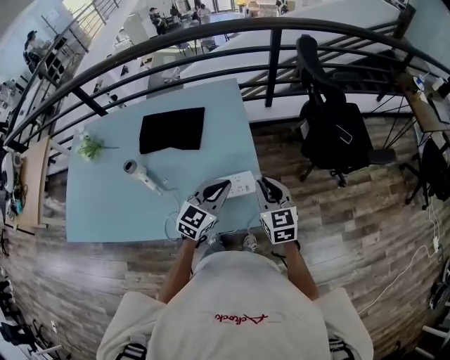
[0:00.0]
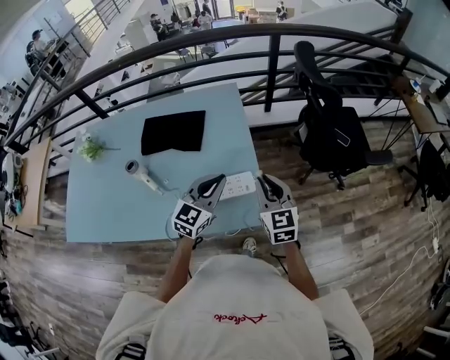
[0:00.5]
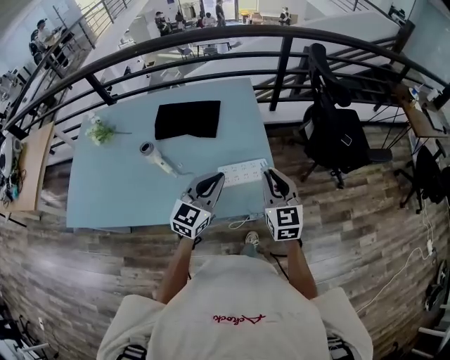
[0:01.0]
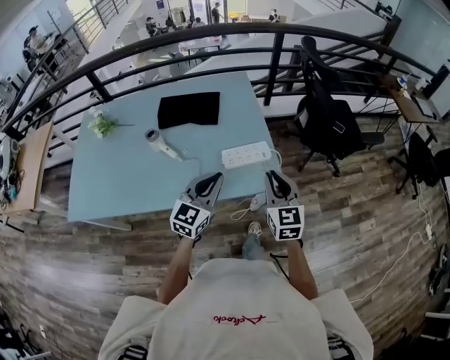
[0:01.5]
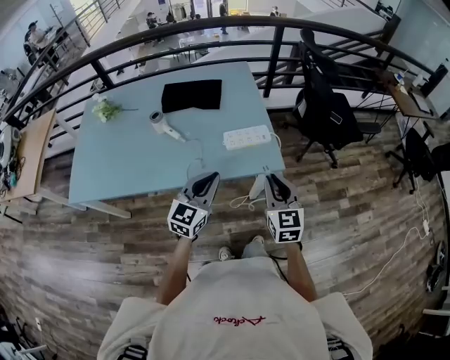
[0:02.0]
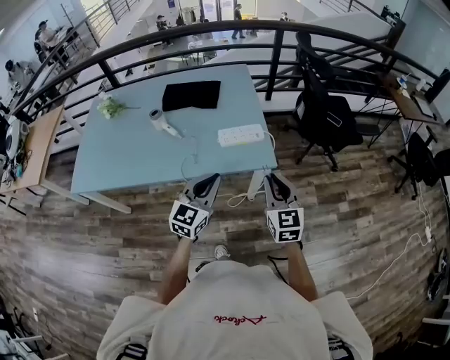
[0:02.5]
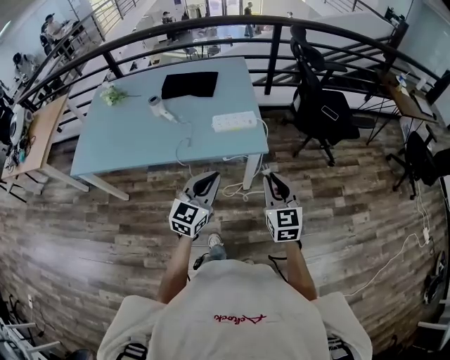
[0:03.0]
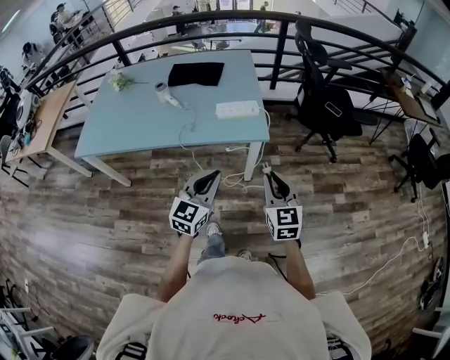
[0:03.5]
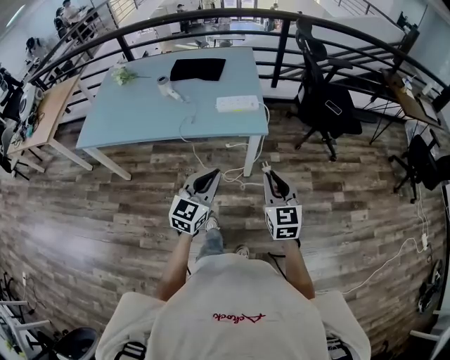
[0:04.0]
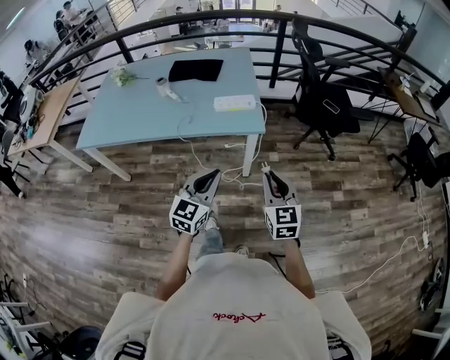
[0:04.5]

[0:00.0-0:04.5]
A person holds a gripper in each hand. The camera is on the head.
0:00.0 to 0:02.0: The left gripper shifts approximately 30 cm backward and to the left. The right gripper heads backward, covering approximately 30 cm.
0:02.0 to 0:04.5: The grippers both shift backward and to the right by some 25 cm.

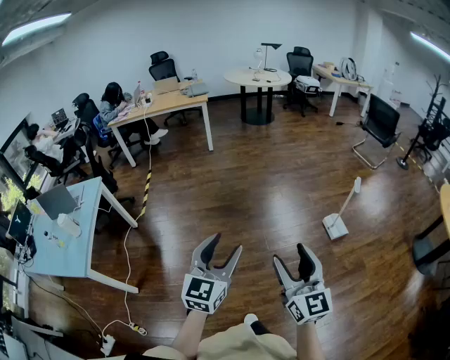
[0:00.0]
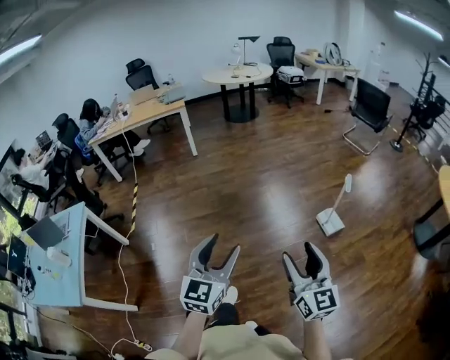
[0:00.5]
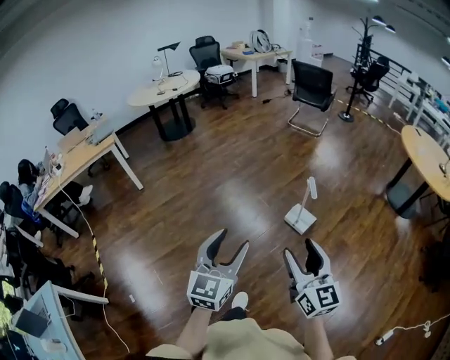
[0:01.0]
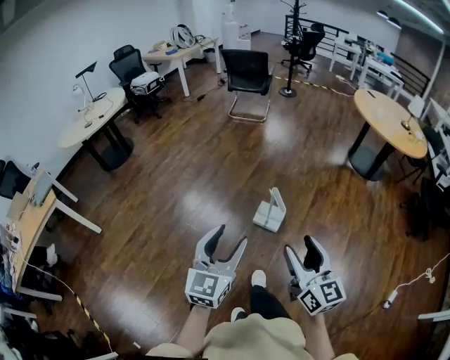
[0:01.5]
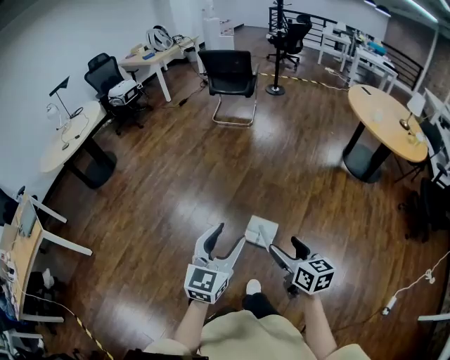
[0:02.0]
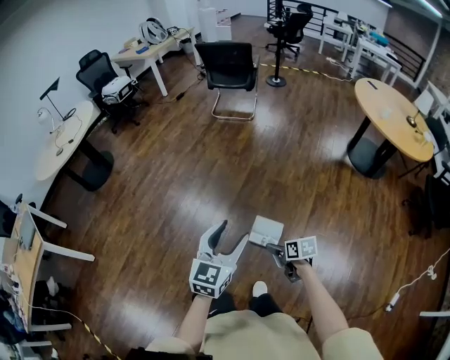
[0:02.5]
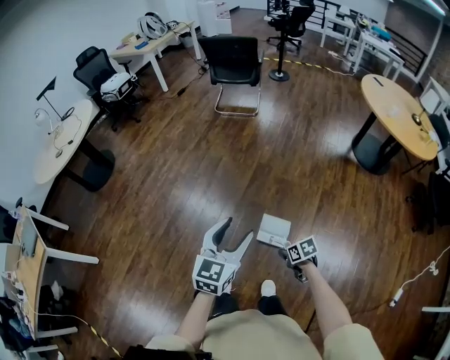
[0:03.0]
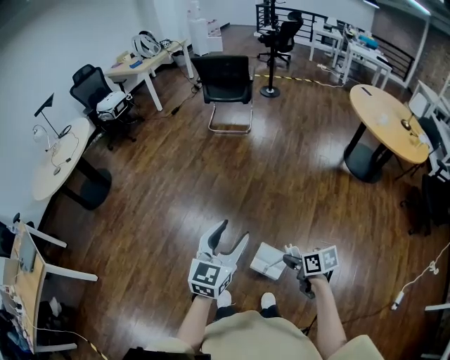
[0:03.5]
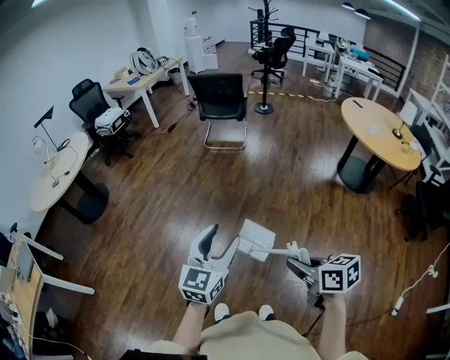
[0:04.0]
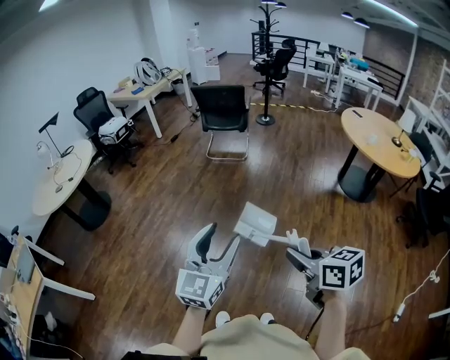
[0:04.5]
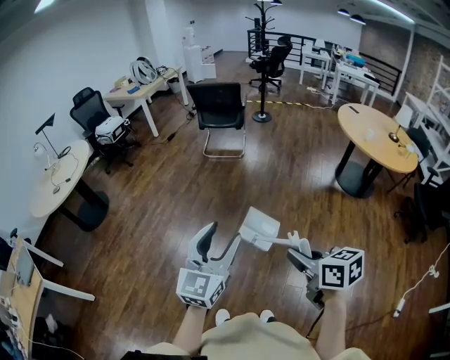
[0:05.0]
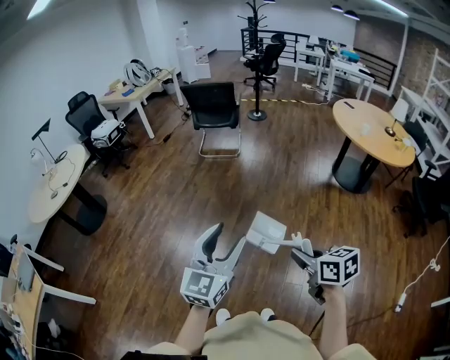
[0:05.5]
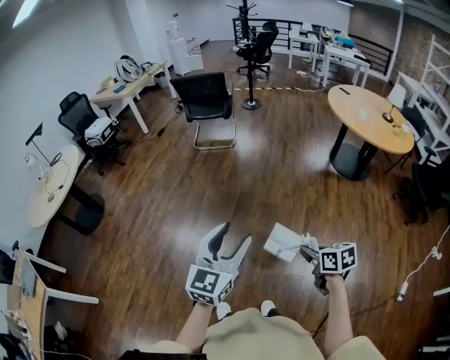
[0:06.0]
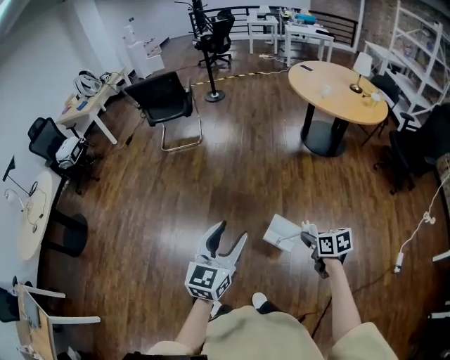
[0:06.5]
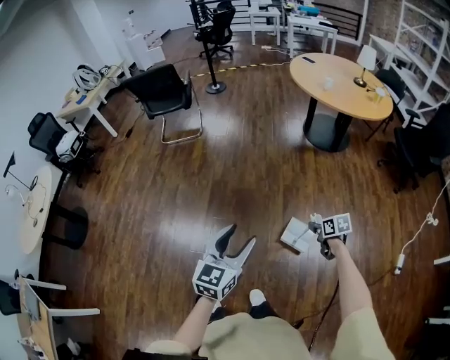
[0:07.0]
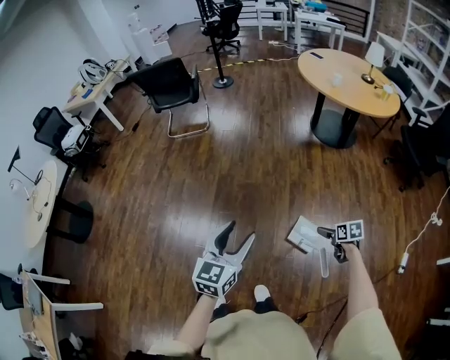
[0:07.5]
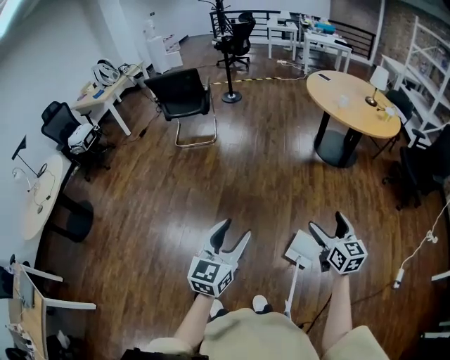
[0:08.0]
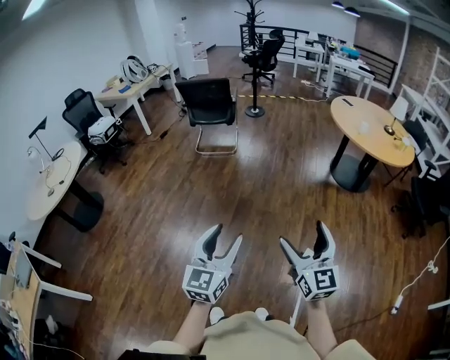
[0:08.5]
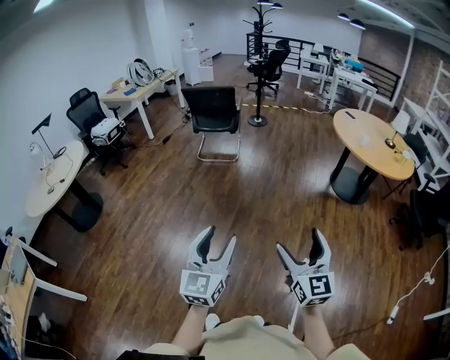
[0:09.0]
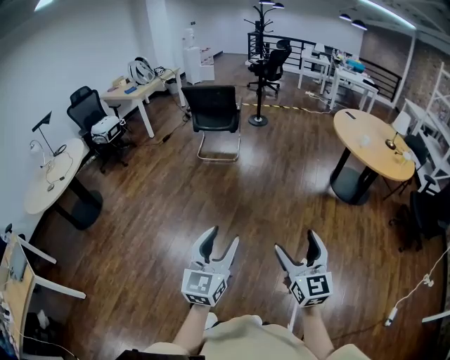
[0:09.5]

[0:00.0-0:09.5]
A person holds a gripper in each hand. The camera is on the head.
0:00.0 to 0:02.0: Both grippers are carried approximately 70 cm. The left gripper rotates about 60 degrees, while the right gripper changes its angle by approximately 60 degrees.
0:02.0 to 0:04.0: The right gripper shifts about 10 cm forward and to the left, reaches roughly 25 cm downward, then returns, and closes its fingers. Meanwhile the left gripper shifts approximately 15 cm forward.
0:04.0 to 0:05.5: The left gripper shifts by approximately 5 cm.
0:05.5 to 0:07.5: The left gripper moves to the right and downward, approximately 25 cm, and rotates approximately 20 degrees, while the right gripper goes about 50 cm to the right and downward, turns by about 30 degrees, and opens.
0:07.5 to 0:09.5: The right gripper travels upward and to the left by approximately 50 cm, and tips its fingers upward by some 60 degrees. Meanwhile the left gripper heads to the left and upward, covering some 20 cm, and changes its angle by some 30 degrees.

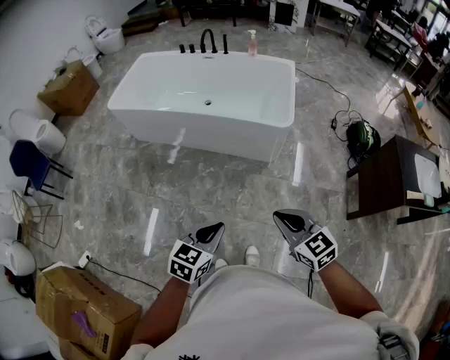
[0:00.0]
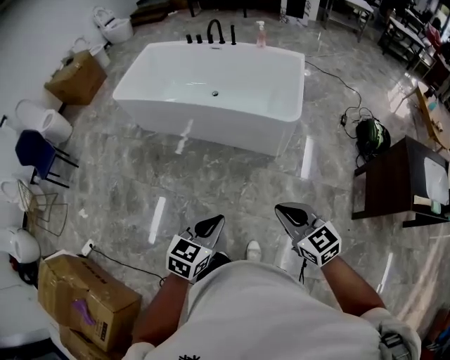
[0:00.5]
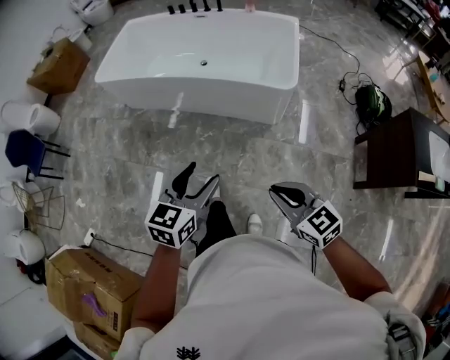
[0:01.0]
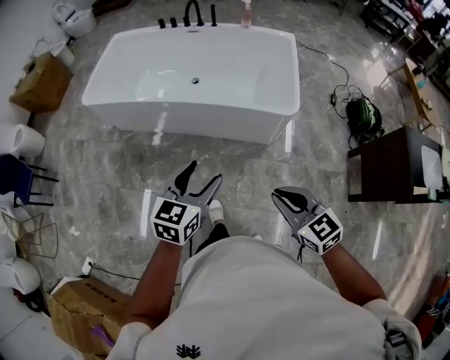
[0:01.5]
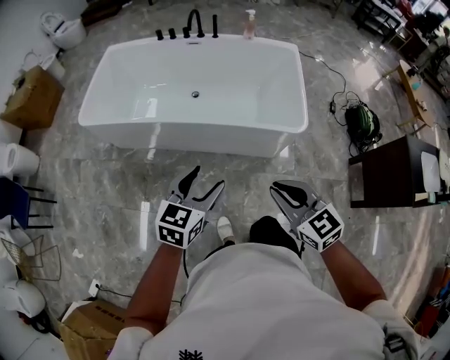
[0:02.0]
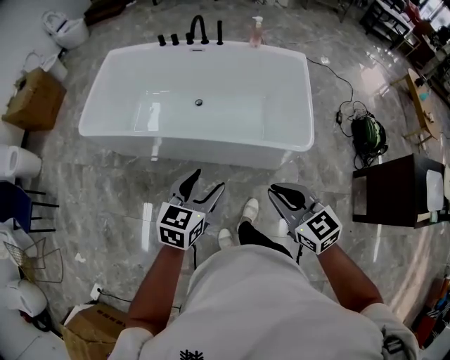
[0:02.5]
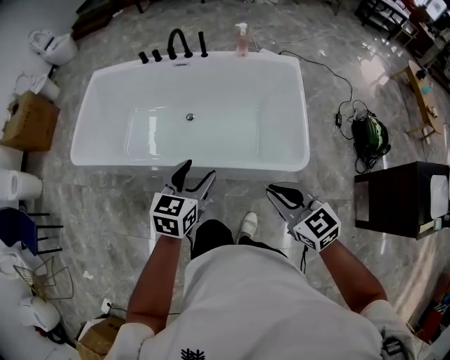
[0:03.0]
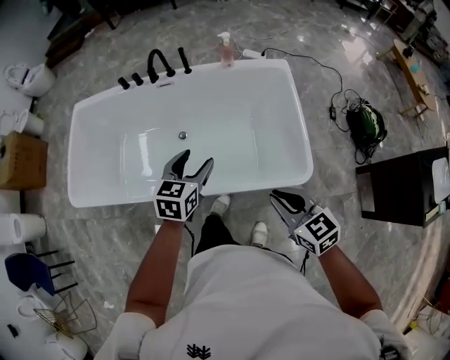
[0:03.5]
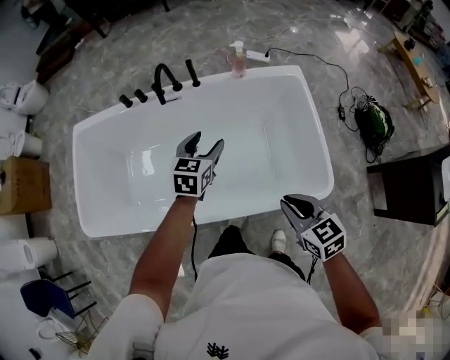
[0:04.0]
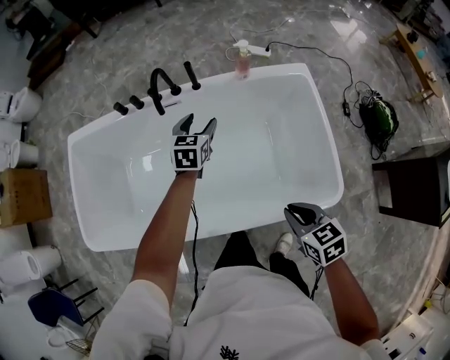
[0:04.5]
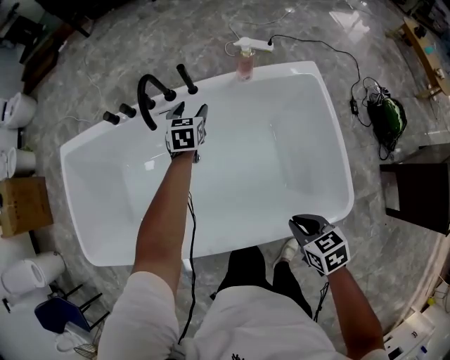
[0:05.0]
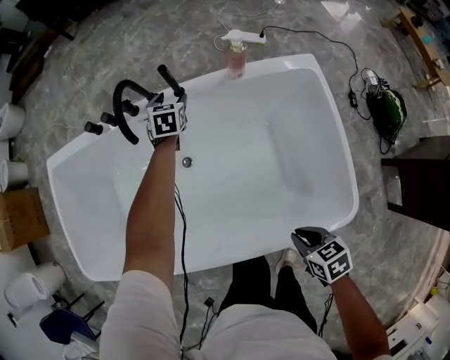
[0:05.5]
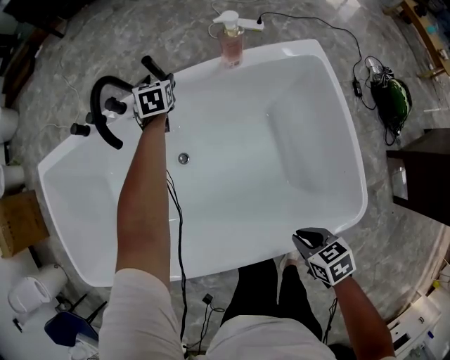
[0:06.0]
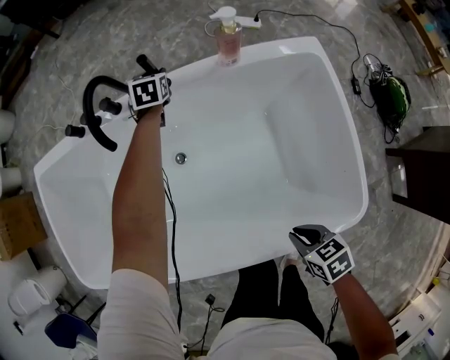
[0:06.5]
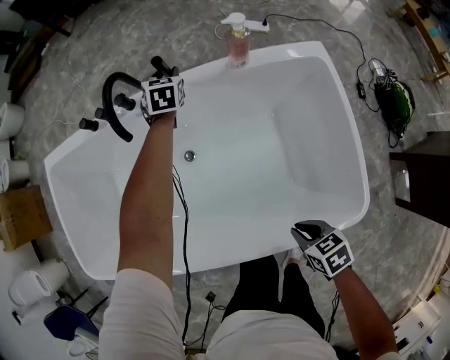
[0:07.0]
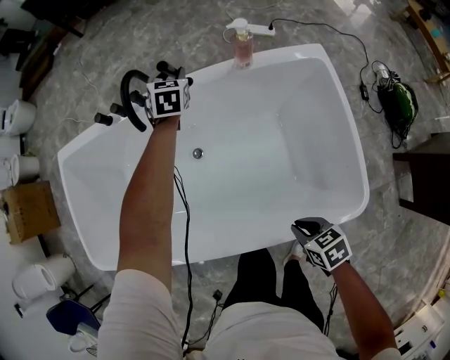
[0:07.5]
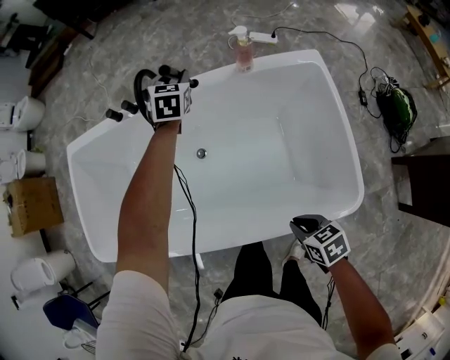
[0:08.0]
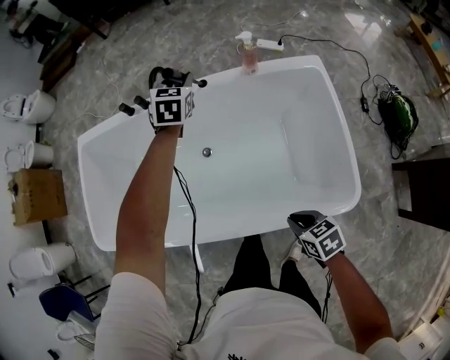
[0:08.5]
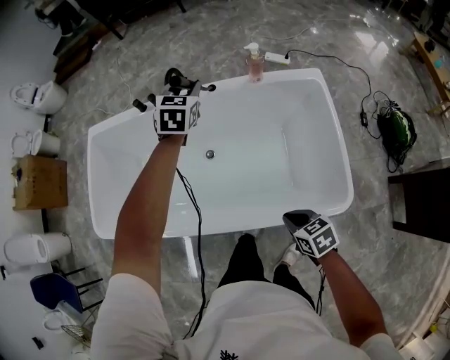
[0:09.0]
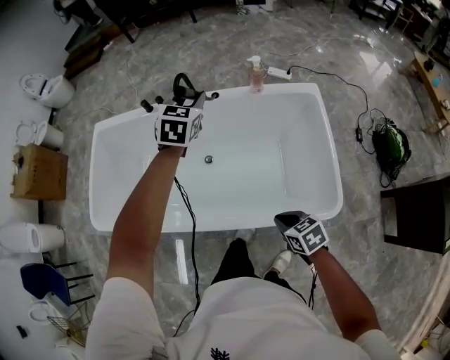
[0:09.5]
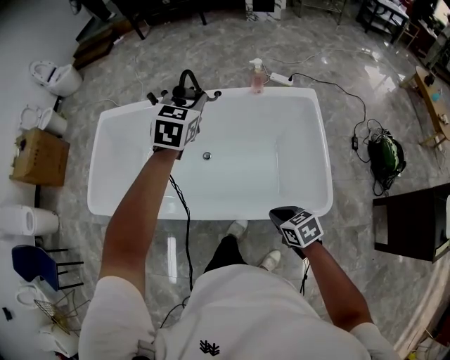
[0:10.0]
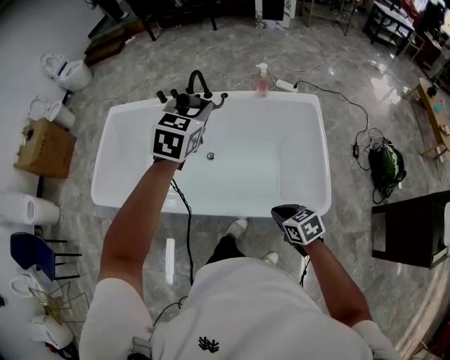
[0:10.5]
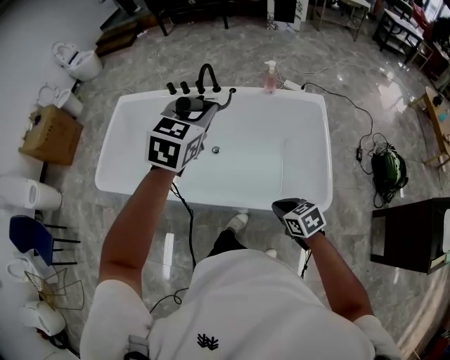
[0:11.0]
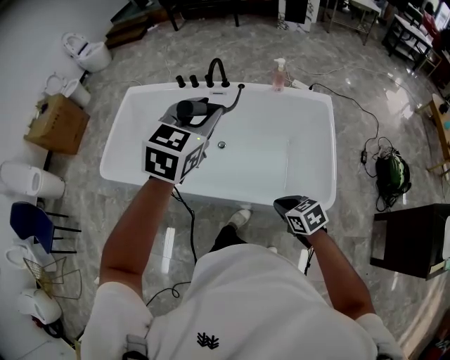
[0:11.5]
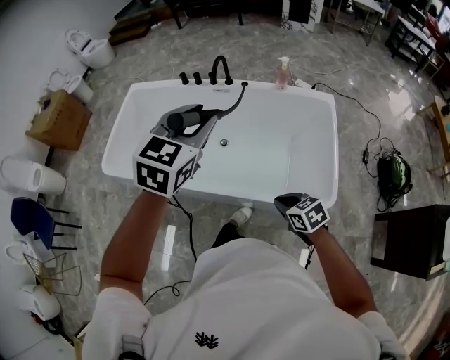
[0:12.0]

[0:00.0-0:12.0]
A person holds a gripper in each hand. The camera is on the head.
0:00.0 to 0:02.0: The right gripper goes about 35 cm forward and to the left, while the left gripper travels forward by some 40 cm, and opens.
0:02.0 to 0:04.0: The two grippers travel together, forward, roughly 60 cm. The right gripper turns by about 30 degrees.
0:04.0 to 0:06.0: The right gripper is displaced downward by some 25 cm, and rotates some 30 degrees; the left gripper goes roughly 50 cm forward and downward, and turns by about 20 degrees.
0:06.0 to 0:08.0: The left gripper shifts some 20 cm upward and backward, and closes; the right gripper shifts approximately 5 cm upward.
0:08.0 to 0:10.0: The right gripper goes approximately 15 cm upward and backward, while the left gripper shifts about 40 cm backward and upward.
0:10.0 to 0:12.0: The right gripper is displaced backward by roughly 5 cm. The left gripper is displaced backward, upward and to the left by roughly 25 cm.
